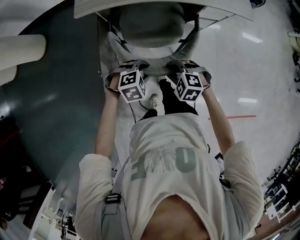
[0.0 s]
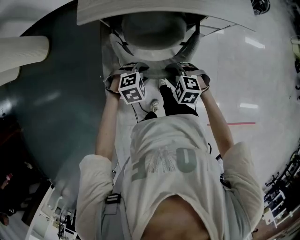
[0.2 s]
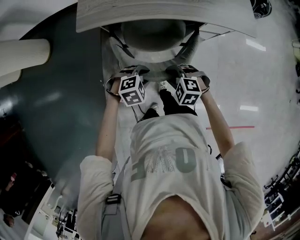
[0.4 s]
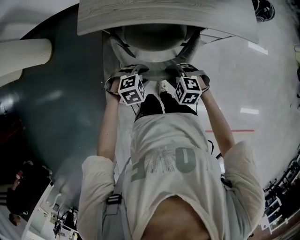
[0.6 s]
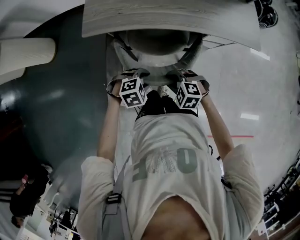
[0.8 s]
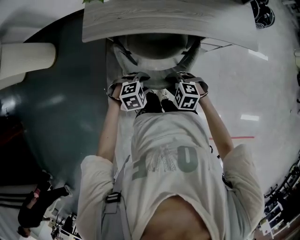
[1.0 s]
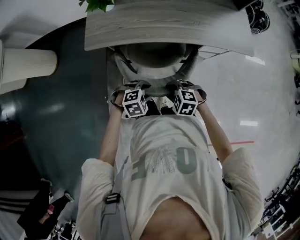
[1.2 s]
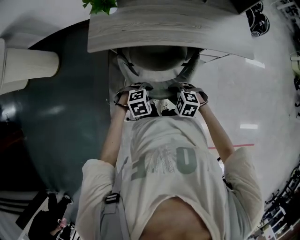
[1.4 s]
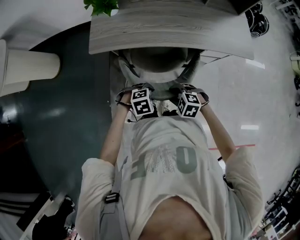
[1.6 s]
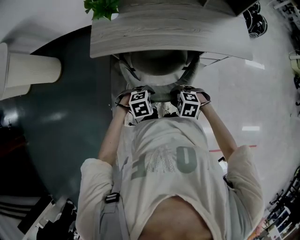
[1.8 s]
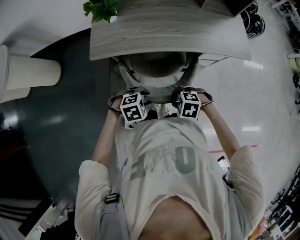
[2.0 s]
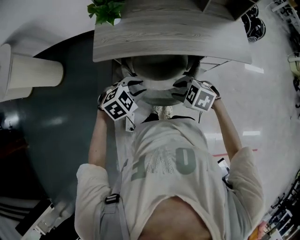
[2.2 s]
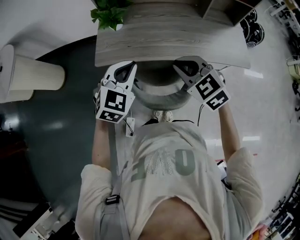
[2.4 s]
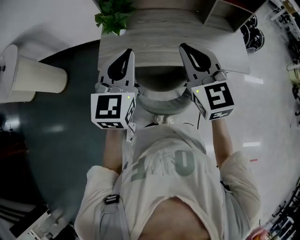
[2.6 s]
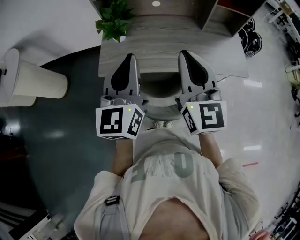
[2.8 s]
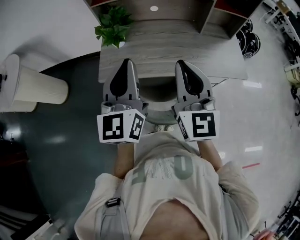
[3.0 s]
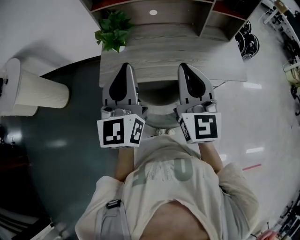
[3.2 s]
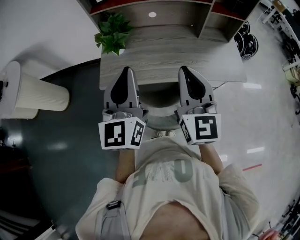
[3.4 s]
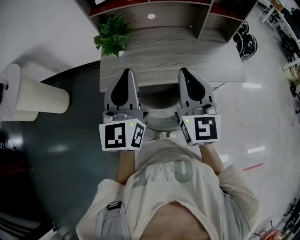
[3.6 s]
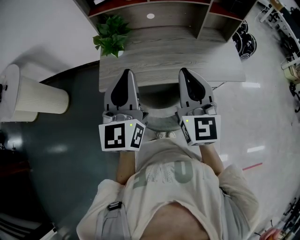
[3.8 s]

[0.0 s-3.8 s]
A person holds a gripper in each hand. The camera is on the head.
0.0 to 1.2 s: The right gripper moves about 10 cm, while the left gripper changes place by roughly 10 cm.
1.2 to 2.6 s: The two grippers go approximately 40 cm upward. The right gripper points its fingers roughly 50 degrees further upward, and closes up. The left gripper angles its fingers upward, by some 60 degrees, and closes its fingers.

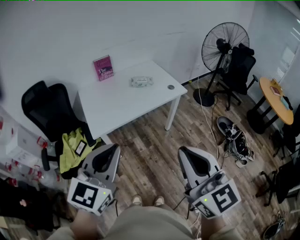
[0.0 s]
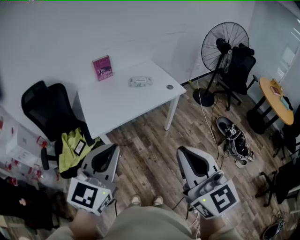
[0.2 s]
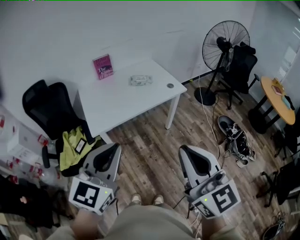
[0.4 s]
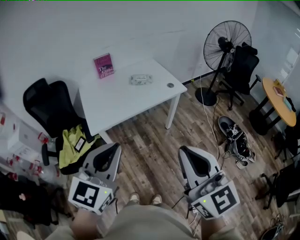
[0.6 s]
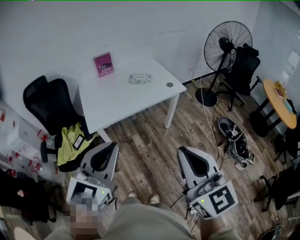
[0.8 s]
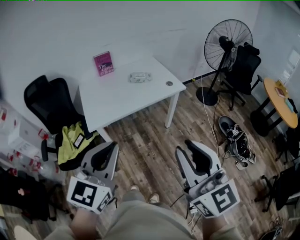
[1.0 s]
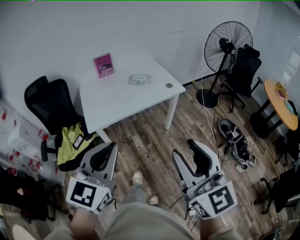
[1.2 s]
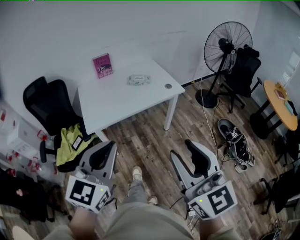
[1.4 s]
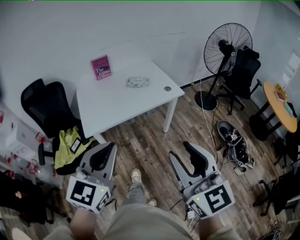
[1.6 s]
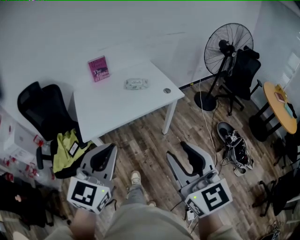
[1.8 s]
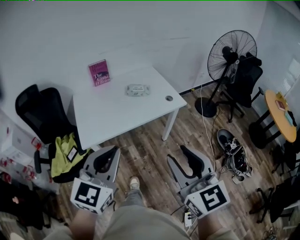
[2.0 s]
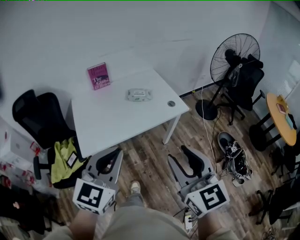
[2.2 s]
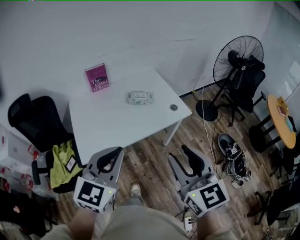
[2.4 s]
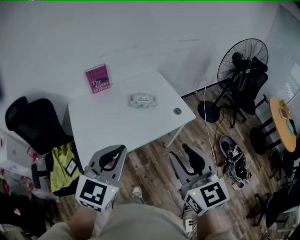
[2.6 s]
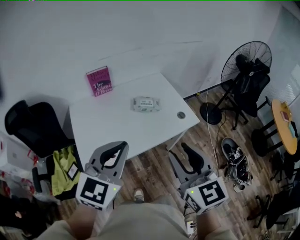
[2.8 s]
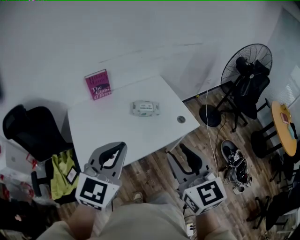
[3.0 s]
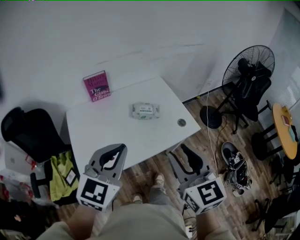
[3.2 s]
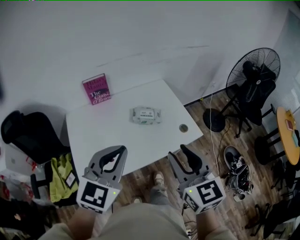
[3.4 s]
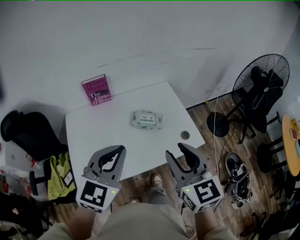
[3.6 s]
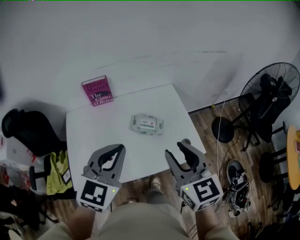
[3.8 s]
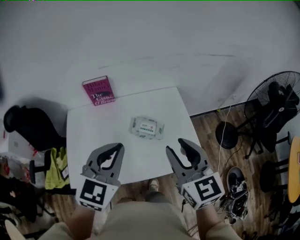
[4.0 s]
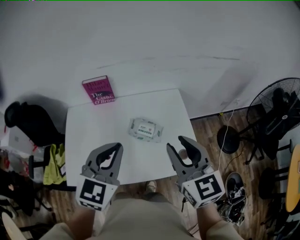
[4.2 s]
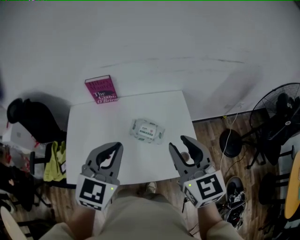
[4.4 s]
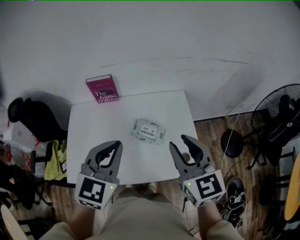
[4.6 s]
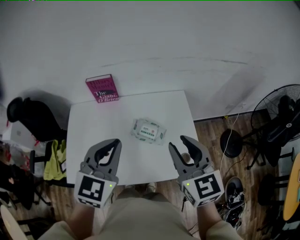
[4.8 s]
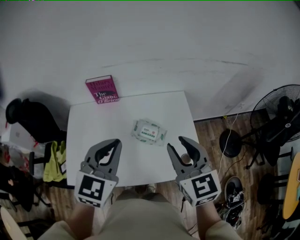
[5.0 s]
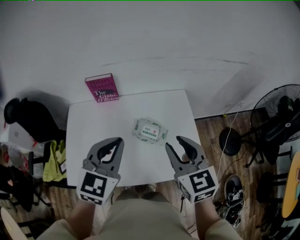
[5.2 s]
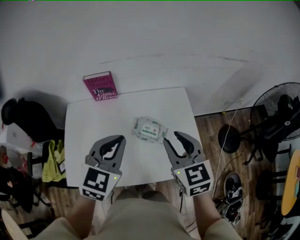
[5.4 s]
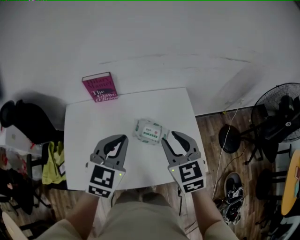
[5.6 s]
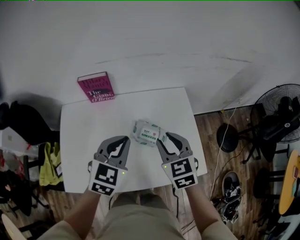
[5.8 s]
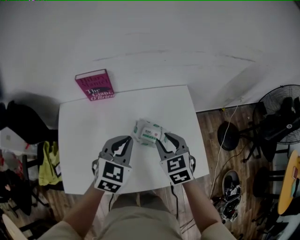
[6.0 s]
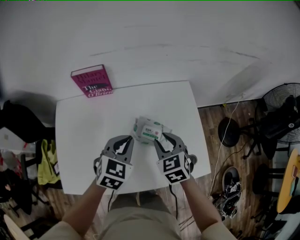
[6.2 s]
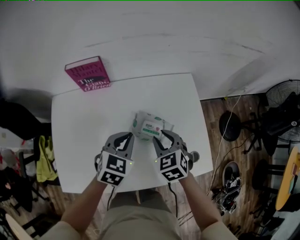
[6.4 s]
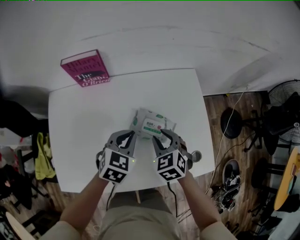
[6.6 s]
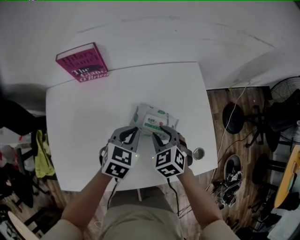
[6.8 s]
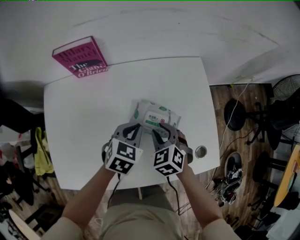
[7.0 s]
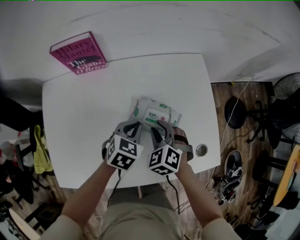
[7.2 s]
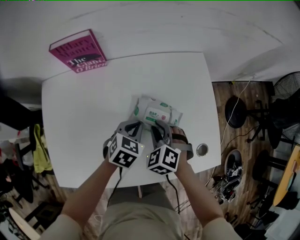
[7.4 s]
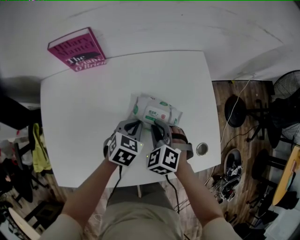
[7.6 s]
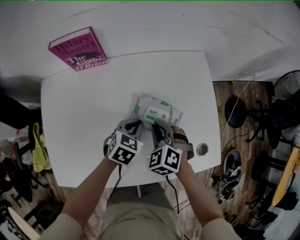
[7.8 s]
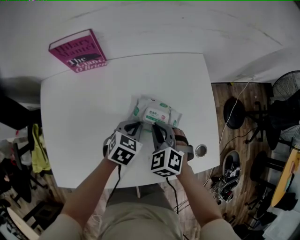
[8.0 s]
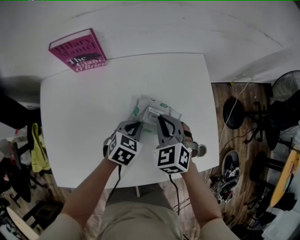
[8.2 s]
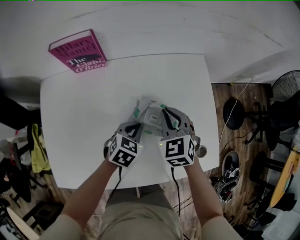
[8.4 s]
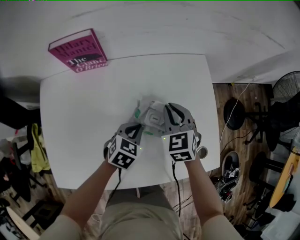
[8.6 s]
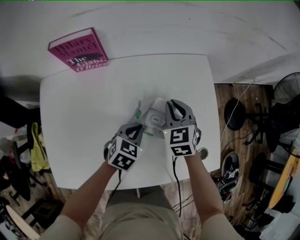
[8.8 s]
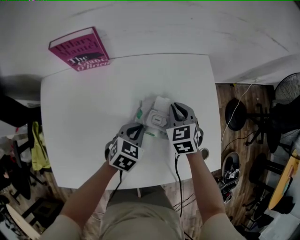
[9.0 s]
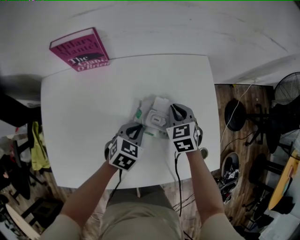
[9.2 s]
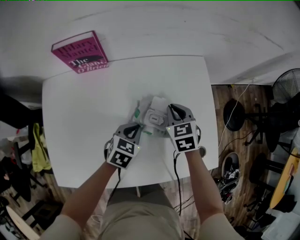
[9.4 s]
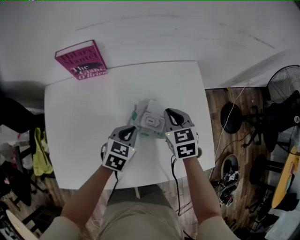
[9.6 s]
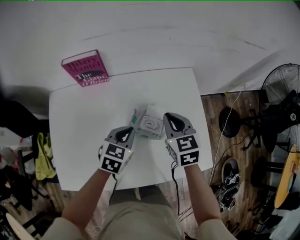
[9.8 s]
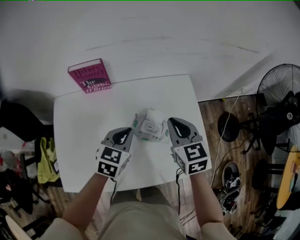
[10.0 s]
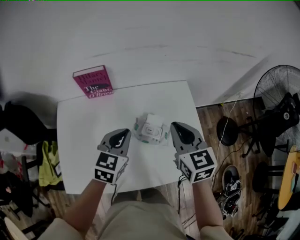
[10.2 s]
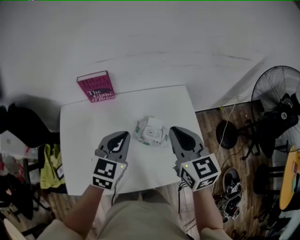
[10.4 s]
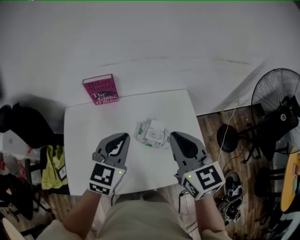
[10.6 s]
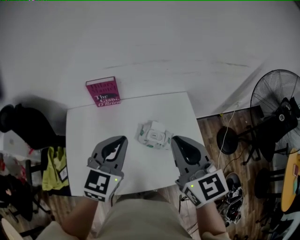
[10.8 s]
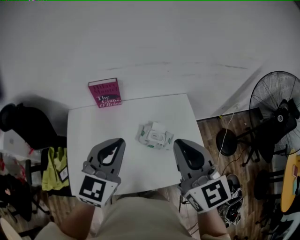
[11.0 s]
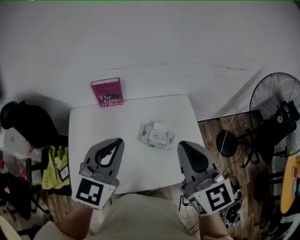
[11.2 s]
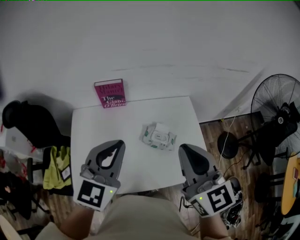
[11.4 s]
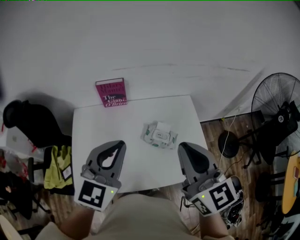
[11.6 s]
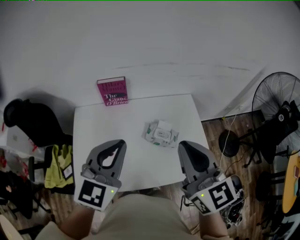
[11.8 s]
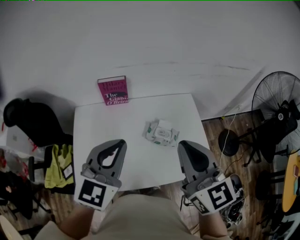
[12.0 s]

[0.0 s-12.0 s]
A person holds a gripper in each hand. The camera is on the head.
0.0 to 1.6 s: Both grippers move to the right, some 10 cm. The right gripper opens.
1.6 to 3.0 s: Both grippers travel together forward, about 35 cm.
3.0 to 4.4 s: The two grippers go some 25 cm forward and to the right. The left gripper turns by roughly 20 degrees.
4.4 to 6.0 s: Both grippers travel together downward and forward, approximately 20 cm. The right gripper turns by about 30 degrees.
6.0 to 7.6 s: The two grippers go some 20 cm downward. The right gripper changes its angle by roughly 30 degrees; the left gripper changes its angle by roughly 20 degrees.
7.6 to 9.0 s: The right gripper is displaced forward by approximately 10 cm, and changes its angle by about 30 degrees.
9.0 to 10.4 s: Both grippers travel together upward, approximately 30 cm. The right gripper turns by approximately 30 degrees, while the left gripper changes its angle by roughly 30 degrees.
10.4 to 12.0 s: The grippers both shift upward, backward and to the left by about 20 cm.

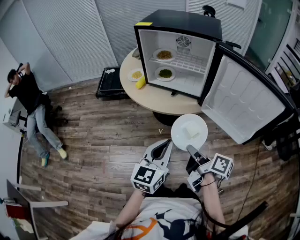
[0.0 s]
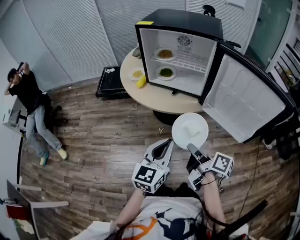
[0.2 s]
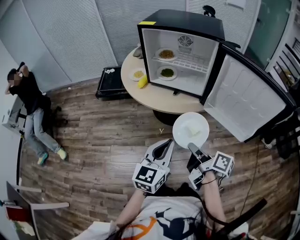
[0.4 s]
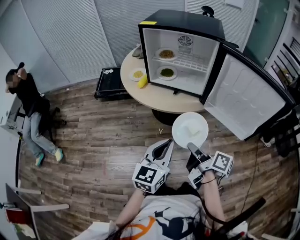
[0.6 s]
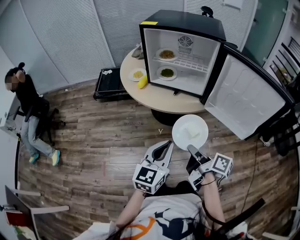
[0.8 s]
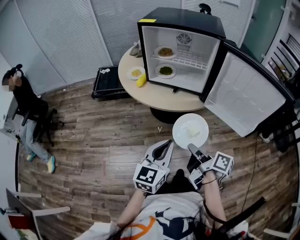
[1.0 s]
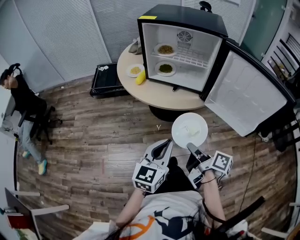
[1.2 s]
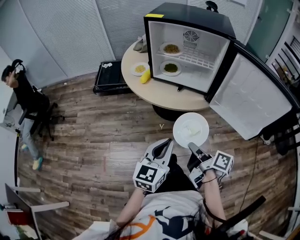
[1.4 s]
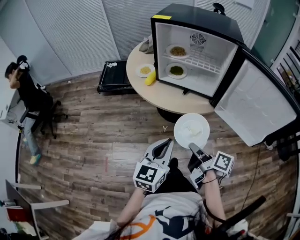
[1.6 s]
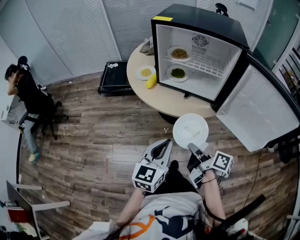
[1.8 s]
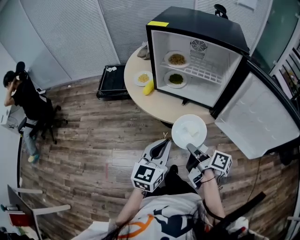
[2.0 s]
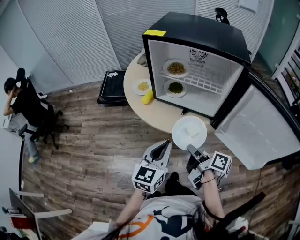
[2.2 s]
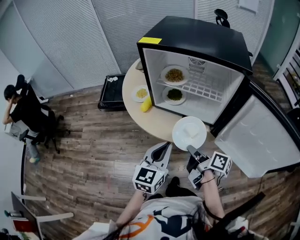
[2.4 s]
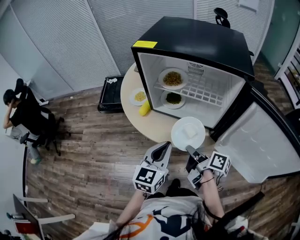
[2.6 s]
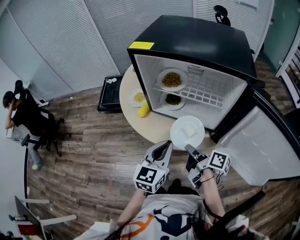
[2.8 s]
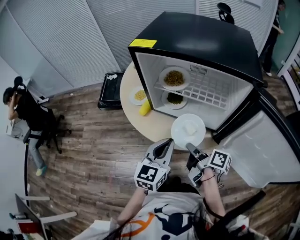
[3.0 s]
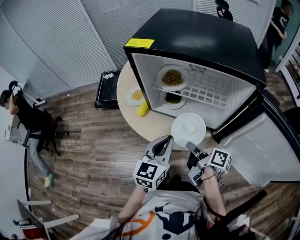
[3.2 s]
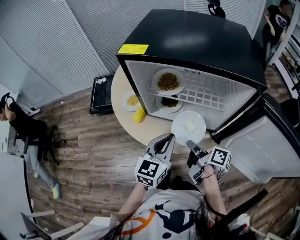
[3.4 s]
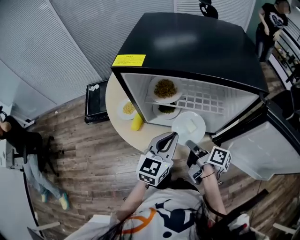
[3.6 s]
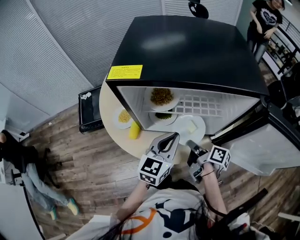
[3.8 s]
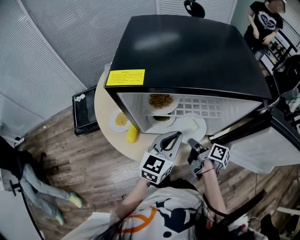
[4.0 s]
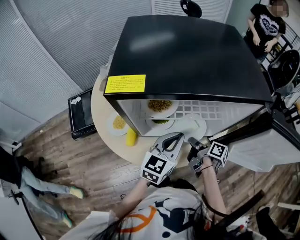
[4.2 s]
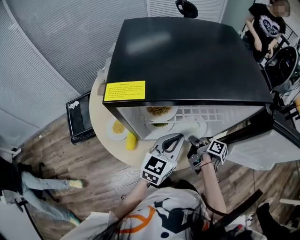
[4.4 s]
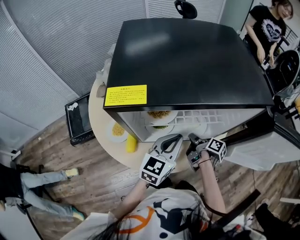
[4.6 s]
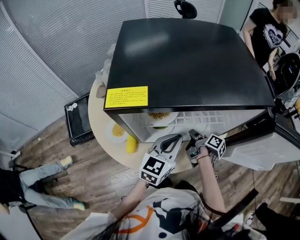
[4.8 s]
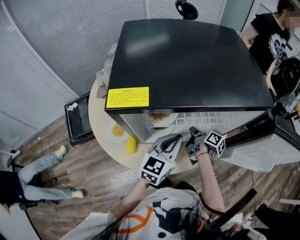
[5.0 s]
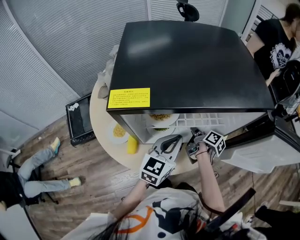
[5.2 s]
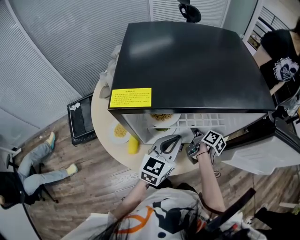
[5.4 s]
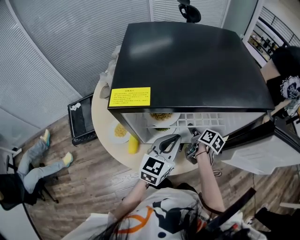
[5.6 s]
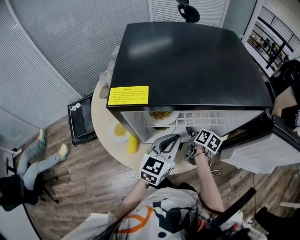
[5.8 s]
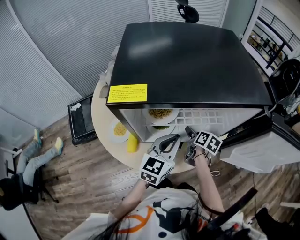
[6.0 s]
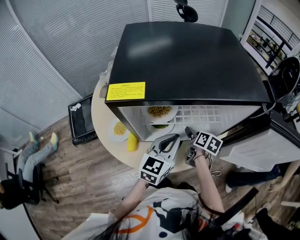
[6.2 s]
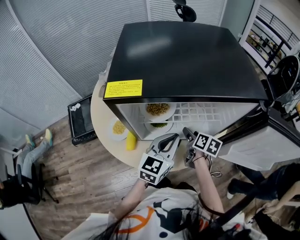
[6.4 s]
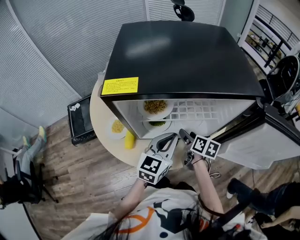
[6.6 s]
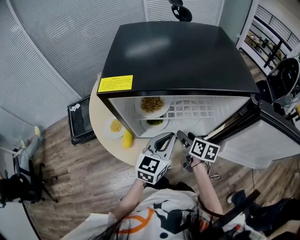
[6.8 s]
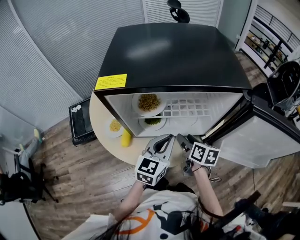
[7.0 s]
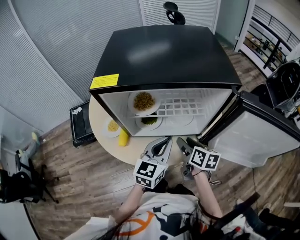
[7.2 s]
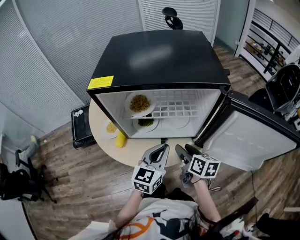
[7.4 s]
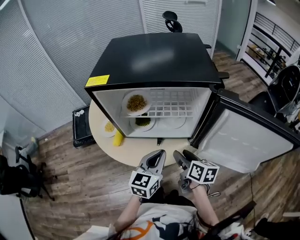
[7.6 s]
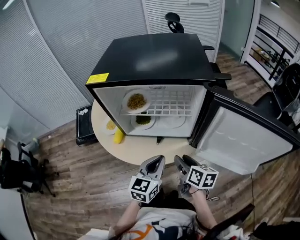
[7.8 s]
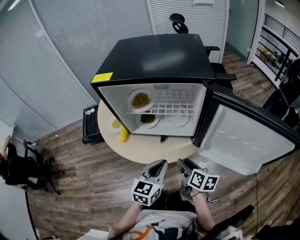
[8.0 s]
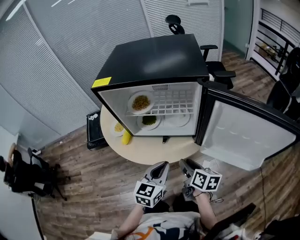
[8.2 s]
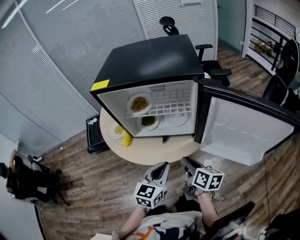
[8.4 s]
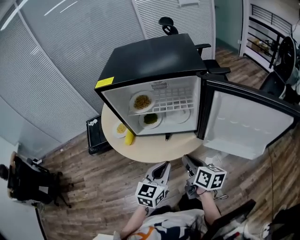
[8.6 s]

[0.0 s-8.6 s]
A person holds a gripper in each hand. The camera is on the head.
0.0 to 1.4 s: Both grippers travel together to the left, roughly 5 cm.
1.4 to 2.8 s: Both grippers move forward, approximately 25 cm.
2.8 to 4.4 s: The right gripper shifts by about 15 cm, and rotates some 40 degrees; the left gripper shifts by about 15 cm, and changes its angle by roughly 30 degrees.
4.4 to 5.8 s: The right gripper heads forward, covering approximately 5 cm, turns by approximately 30 degrees, and opens.
5.8 to 7.2 s: The left gripper travels backward by approximately 5 cm; the right gripper heads backward and upward, covering some 15 cm, and rotates approximately 20 degrees.
7.2 to 8.6 s: Both grippers move backward, some 15 cm. The right gripper closes up.
